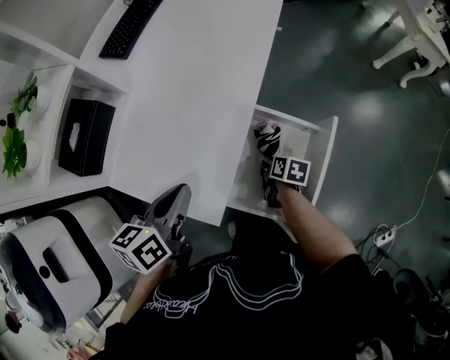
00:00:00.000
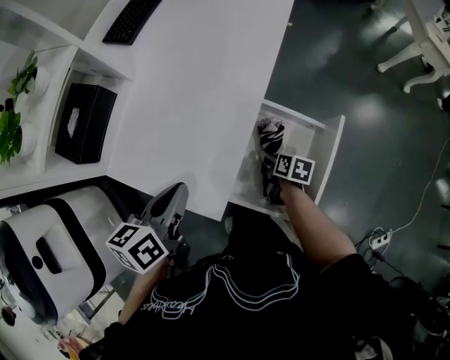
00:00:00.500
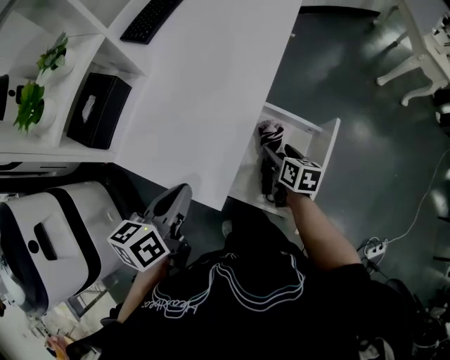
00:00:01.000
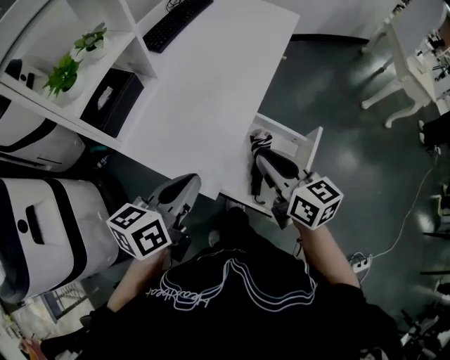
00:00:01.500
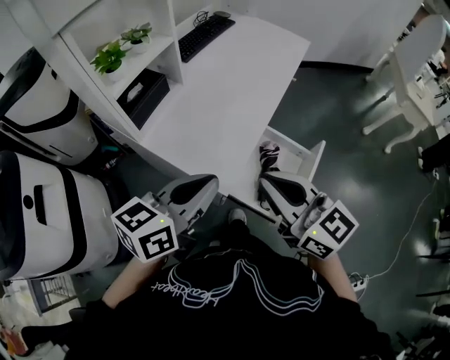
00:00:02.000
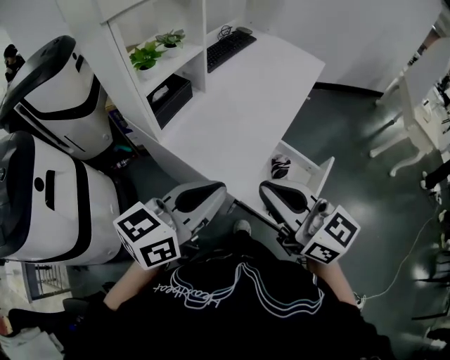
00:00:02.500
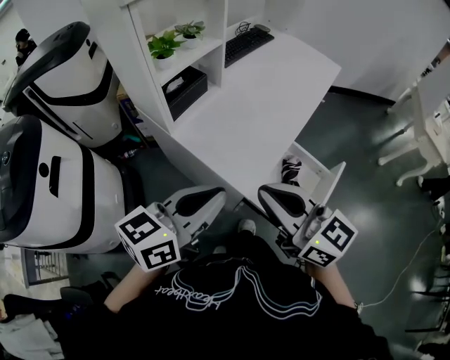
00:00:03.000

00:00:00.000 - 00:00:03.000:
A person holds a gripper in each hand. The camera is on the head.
00:00:00.000 - 00:00:01.500: The left gripper is displaced upward and backward by some 10 cm. The right gripper moves upward, approximately 30 cm, tips its fingers upward by some 40 degrees, and closes up.
00:00:01.500 - 00:00:03.000: The left gripper is displaced backward, upward and to the left by approximately 15 cm. The right gripper heads to the left, upward and backward, covering approximately 20 cm, and rotates roughly 30 degrees.

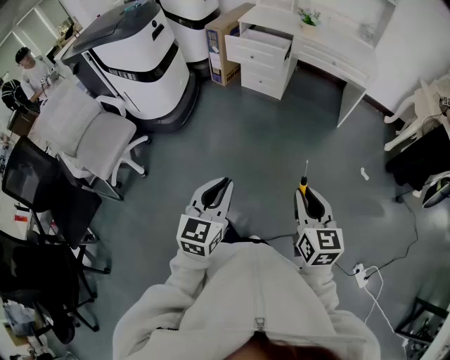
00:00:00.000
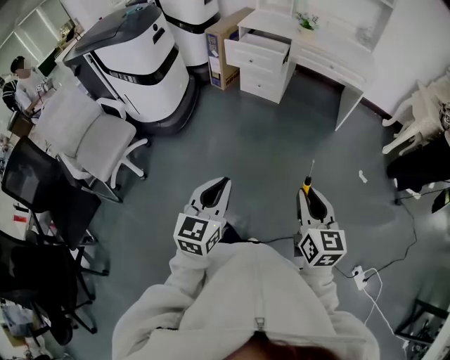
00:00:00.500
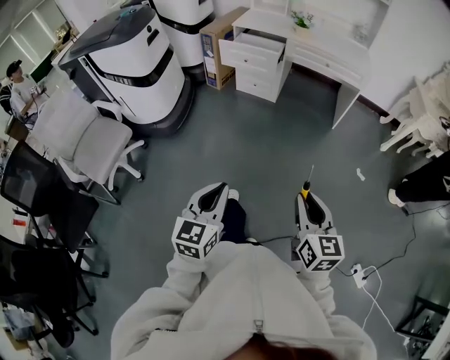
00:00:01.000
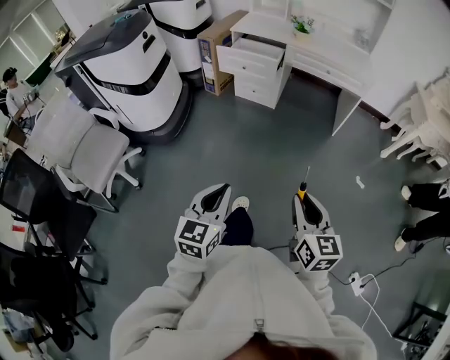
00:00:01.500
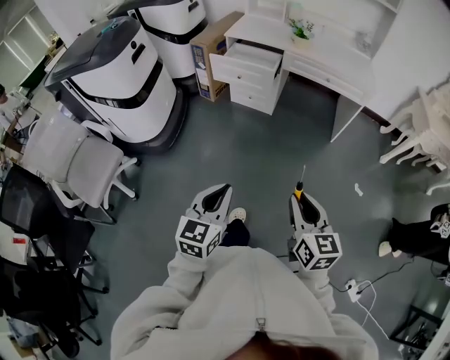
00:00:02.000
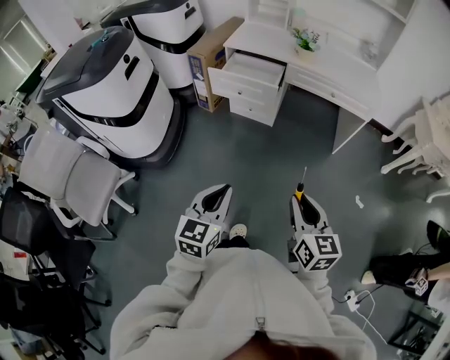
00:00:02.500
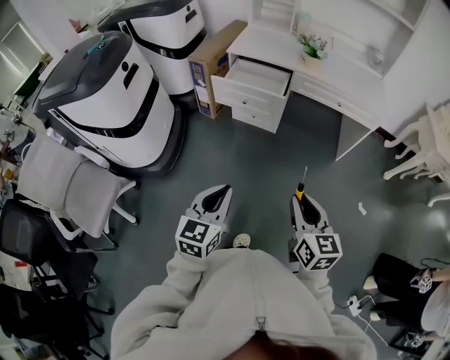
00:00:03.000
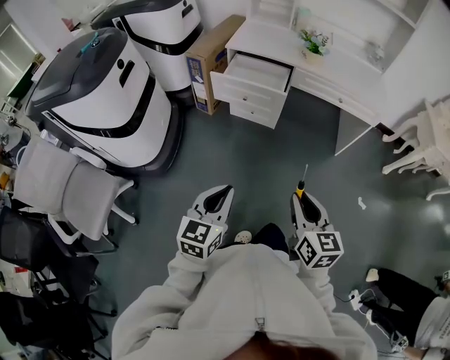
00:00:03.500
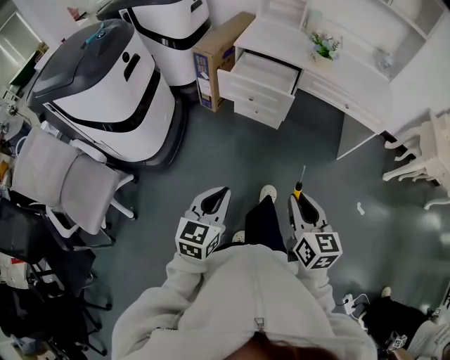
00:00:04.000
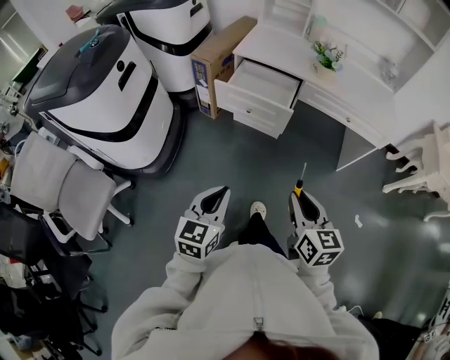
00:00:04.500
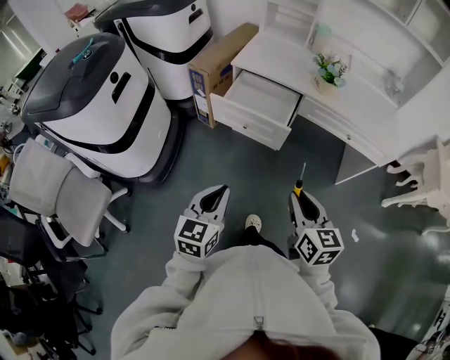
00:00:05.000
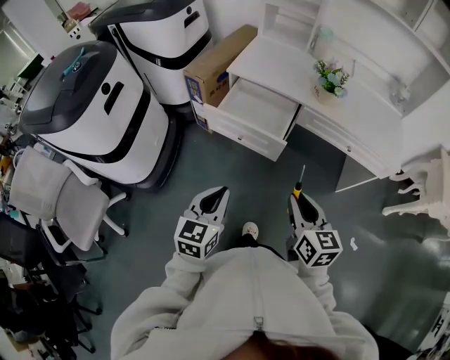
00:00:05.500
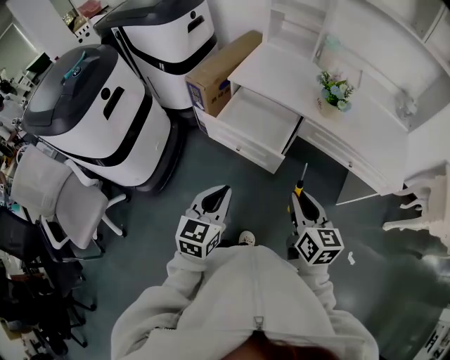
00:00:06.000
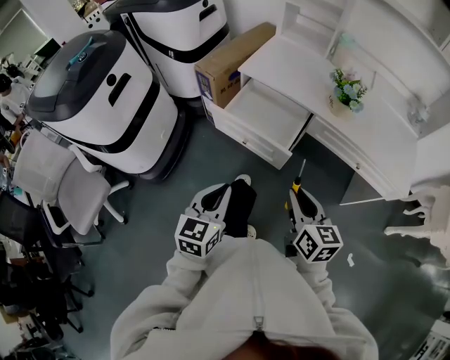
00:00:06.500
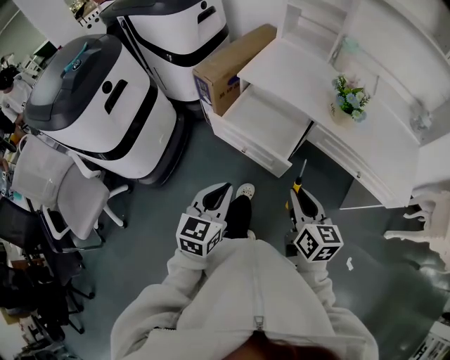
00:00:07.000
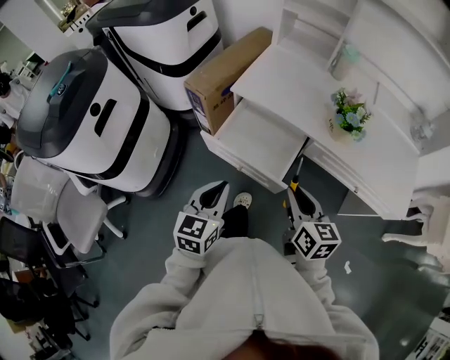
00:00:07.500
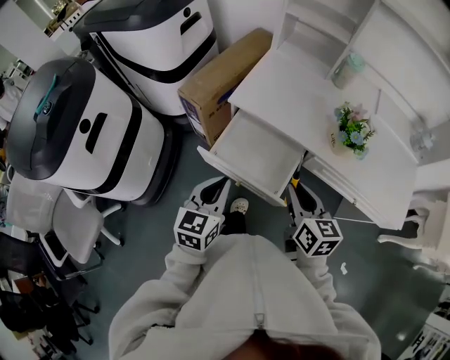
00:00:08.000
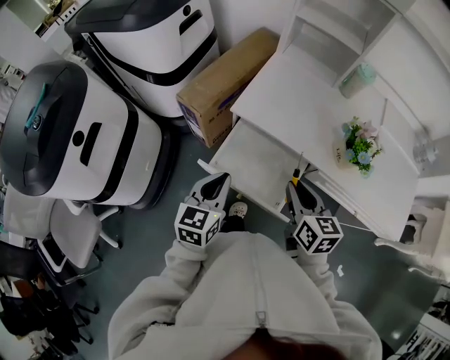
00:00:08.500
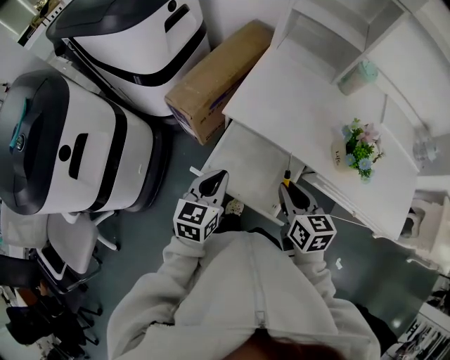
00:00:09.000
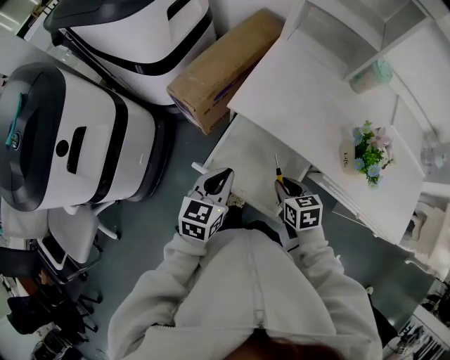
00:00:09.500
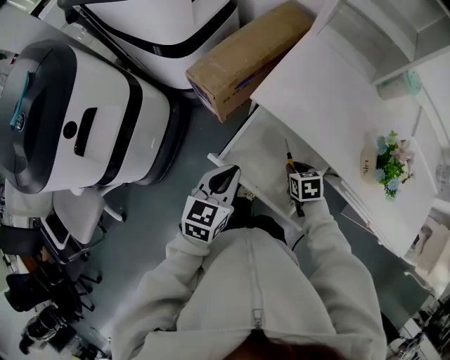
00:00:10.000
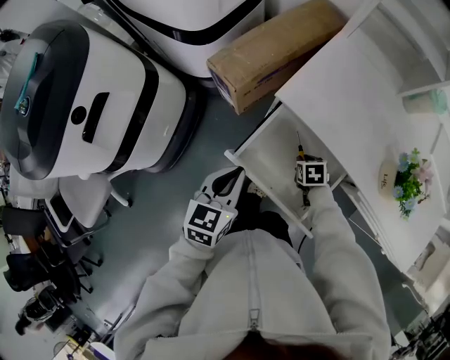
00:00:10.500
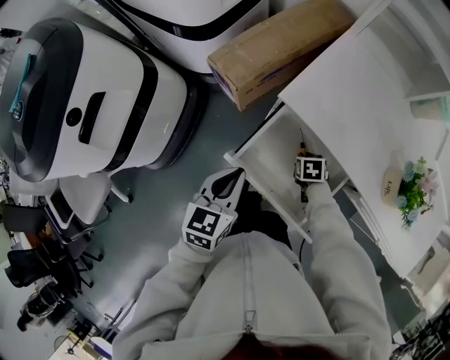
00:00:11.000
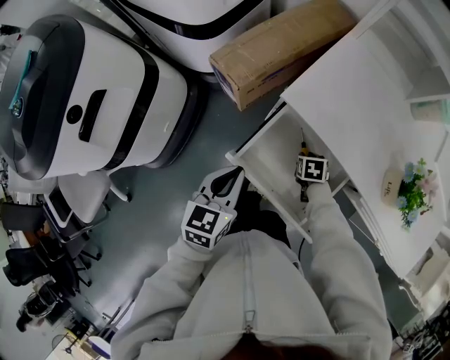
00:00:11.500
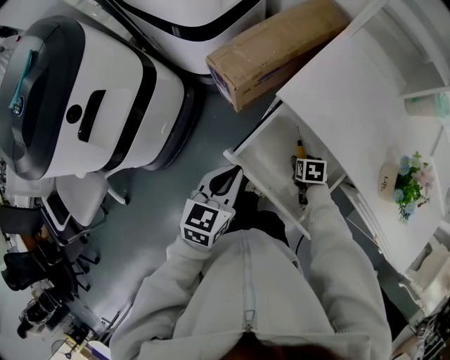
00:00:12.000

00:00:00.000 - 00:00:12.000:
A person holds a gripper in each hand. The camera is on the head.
00:00:00.000 - 00:00:02.000: The grippers both shift forward by roughly 15 cm.
00:00:02.000 - 00:00:04.000: Both grippers move forward and to the left, about 20 cm.
00:00:04.000 - 00:00:06.000: The two grippers go about 30 cm forward.
00:00:06.000 - 00:00:08.000: The grippers both shift forward by approximately 20 cm.
00:00:08.000 - 00:00:10.000: The right gripper is displaced downward and forward by approximately 30 cm, and tips its fingers downward by some 40 degrees, while the left gripper heads forward and downward, covering roughly 15 cm.
00:00:10.000 - 00:00:12.000: The right gripper shifts about 10 cm downward, and opens up.

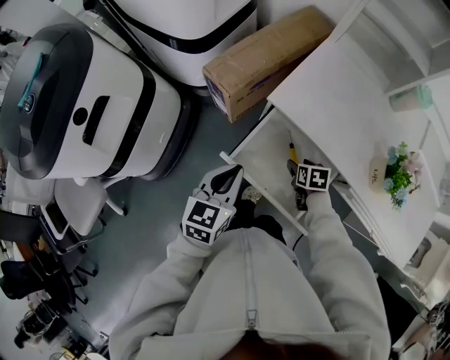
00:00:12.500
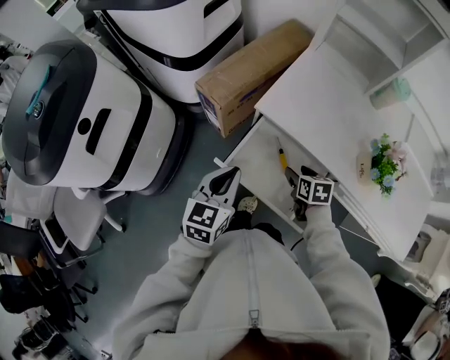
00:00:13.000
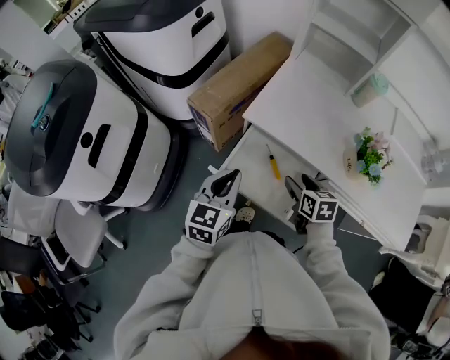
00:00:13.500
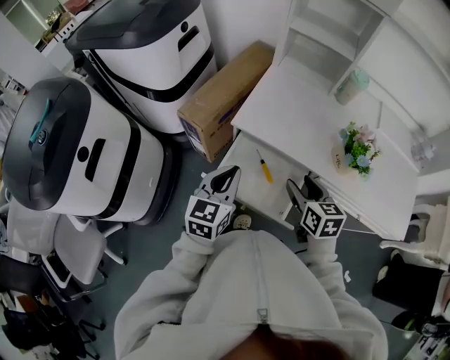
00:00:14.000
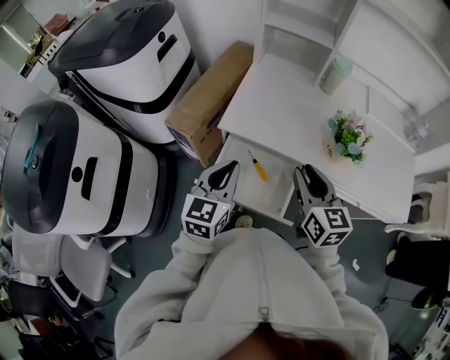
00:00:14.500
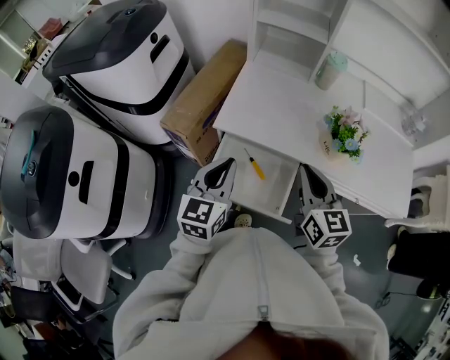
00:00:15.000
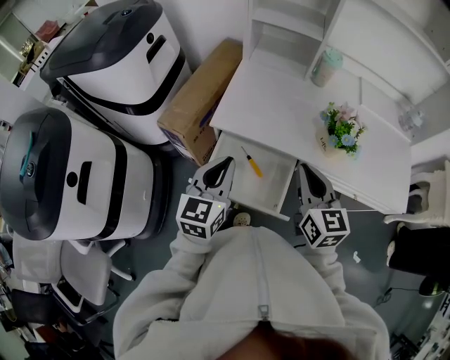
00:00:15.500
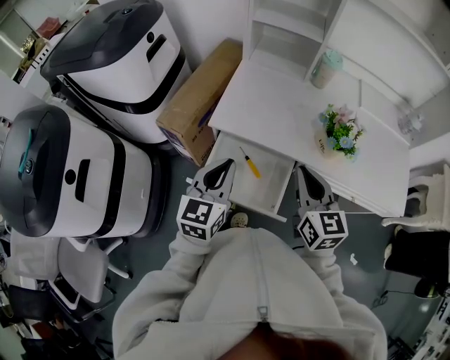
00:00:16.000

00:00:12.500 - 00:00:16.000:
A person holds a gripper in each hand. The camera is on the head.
00:00:12.500 - 00:00:14.500: The left gripper goes some 15 cm upward and to the right, and rotates roughly 20 degrees; the right gripper is displaced upward by roughly 35 cm, angles its fingers upward, by about 50 degrees, and closes its fingers.
00:00:14.500 - 00:00:16.000: The right gripper closes up.

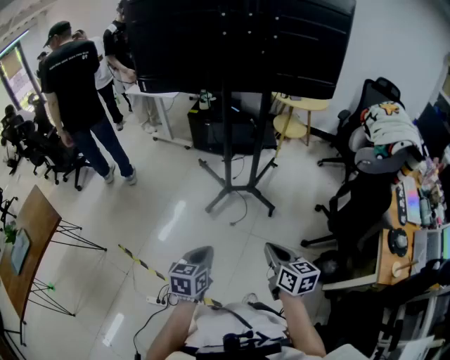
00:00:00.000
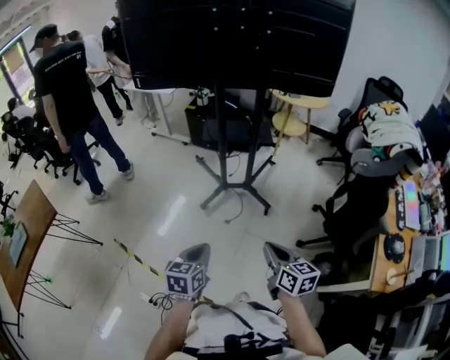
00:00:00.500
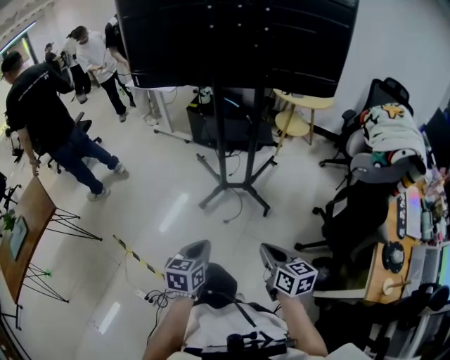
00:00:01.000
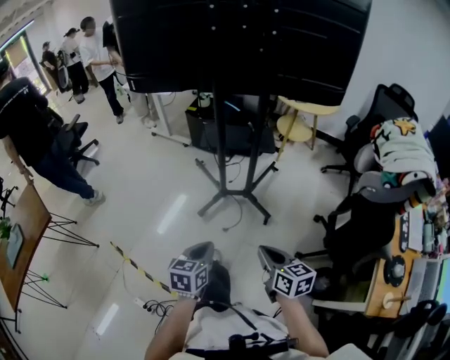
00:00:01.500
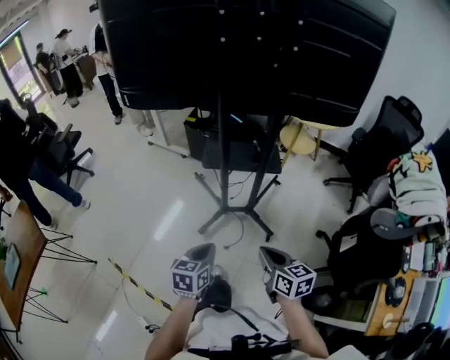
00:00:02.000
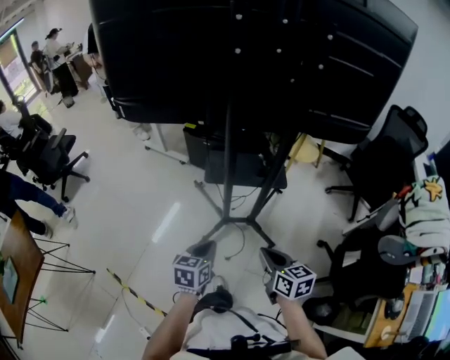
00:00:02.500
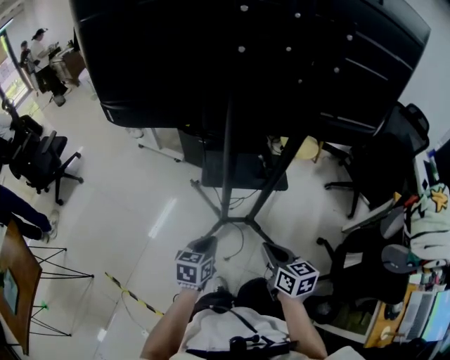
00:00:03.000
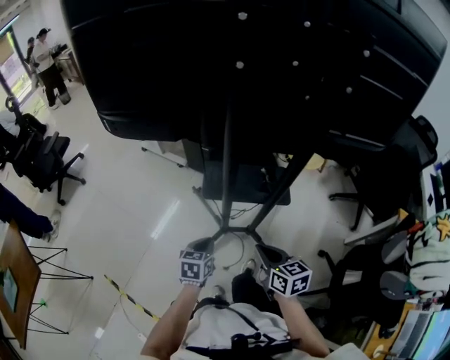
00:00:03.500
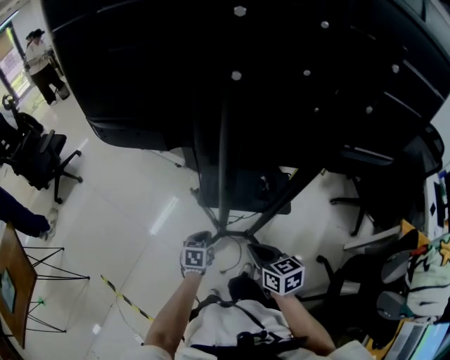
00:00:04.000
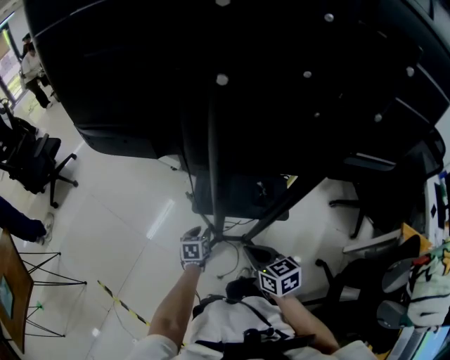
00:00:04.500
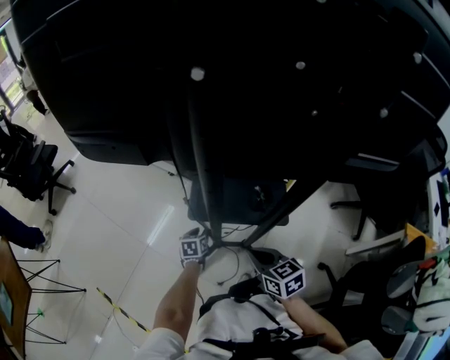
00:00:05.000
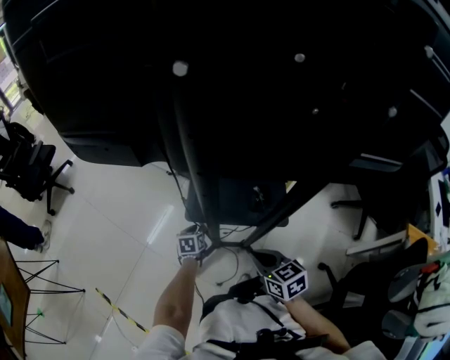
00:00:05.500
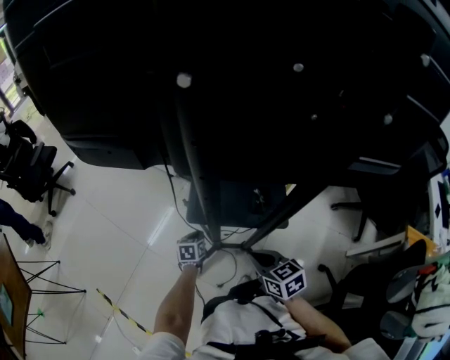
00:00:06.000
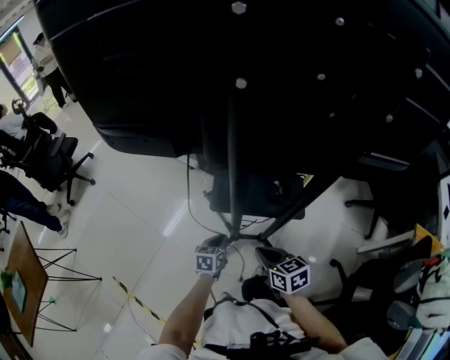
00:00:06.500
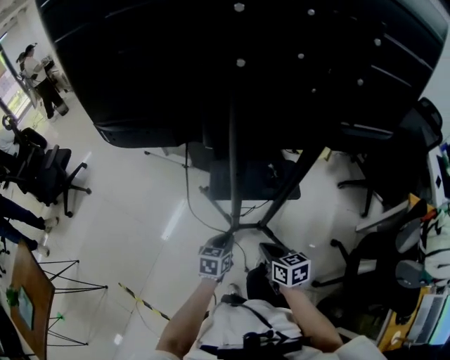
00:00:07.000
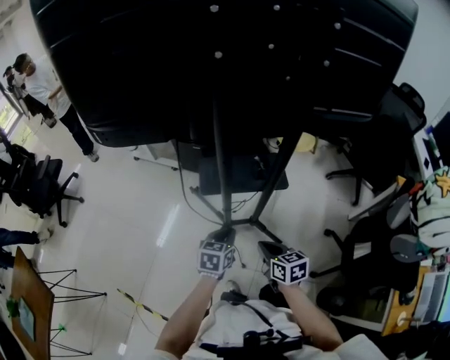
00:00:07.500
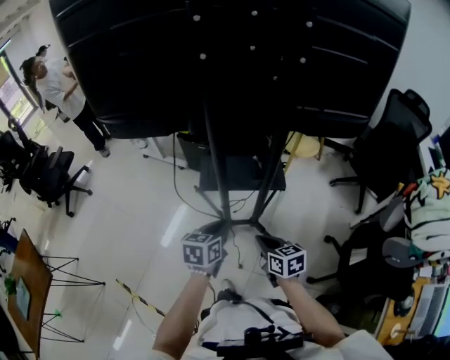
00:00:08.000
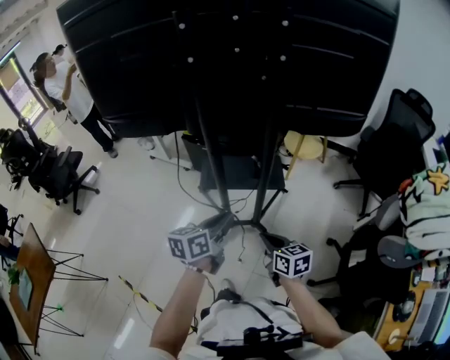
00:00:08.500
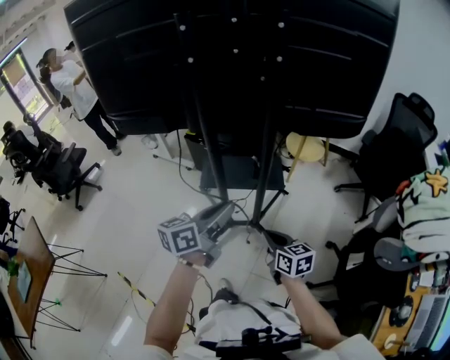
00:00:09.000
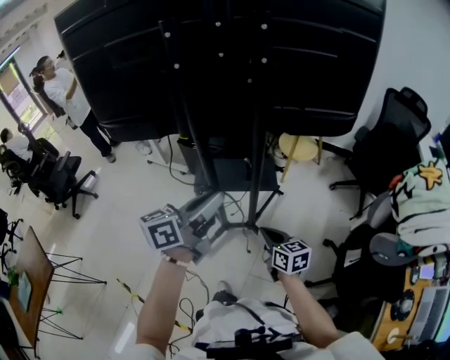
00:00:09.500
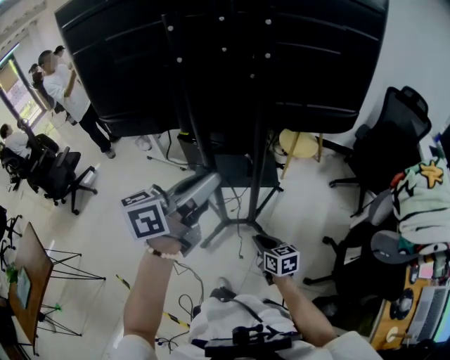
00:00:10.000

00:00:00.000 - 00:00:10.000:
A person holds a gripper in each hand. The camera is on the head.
00:00:00.000 - 00:00:02.000: The grippers both shift forward by about 25 cm.
00:00:02.000 - 00:00:04.000: The right gripper shifts some 30 cm forward, while the left gripper is displaced forward and downward by some 40 cm.
00:00:04.000 - 00:00:06.000: The right gripper moves downward and forward, some 10 cm; the left gripper heads downward and forward, covering roughly 15 cm, and opens, then closes once more.
00:00:06.000 - 00:00:08.000: The left gripper goes roughly 40 cm upward and backward, and changes its angle by roughly 20 degrees. The right gripper moves backward, approximately 20 cm.
00:00:08.000 - 00:00:10.000: The left gripper moves upward, about 30 cm, and points its fingers roughly 40 degrees further upward. Meanwhile the right gripper is displaced to the right by roughly 5 cm.
